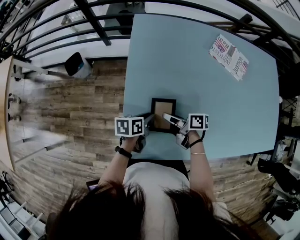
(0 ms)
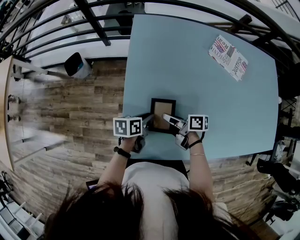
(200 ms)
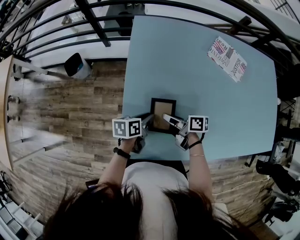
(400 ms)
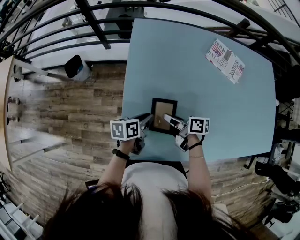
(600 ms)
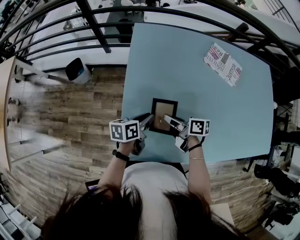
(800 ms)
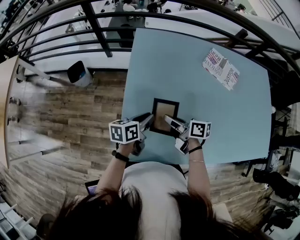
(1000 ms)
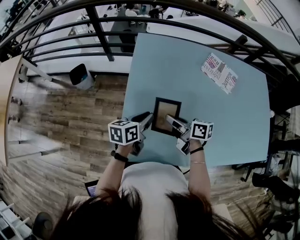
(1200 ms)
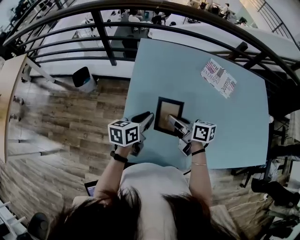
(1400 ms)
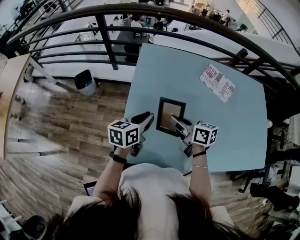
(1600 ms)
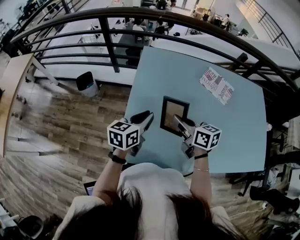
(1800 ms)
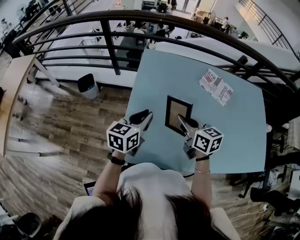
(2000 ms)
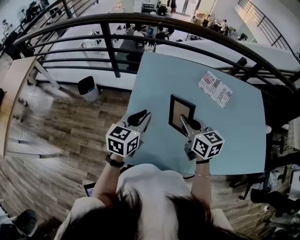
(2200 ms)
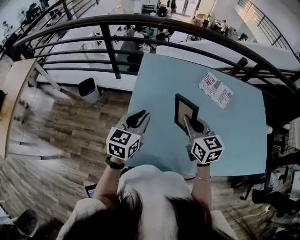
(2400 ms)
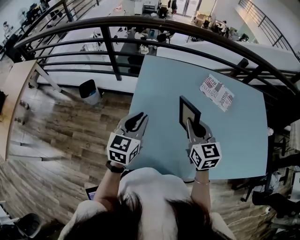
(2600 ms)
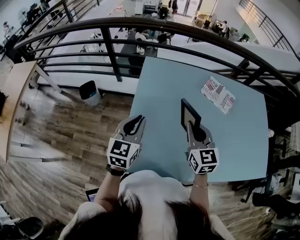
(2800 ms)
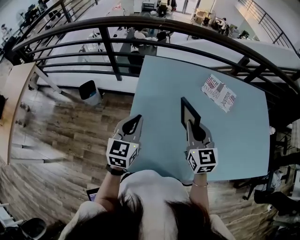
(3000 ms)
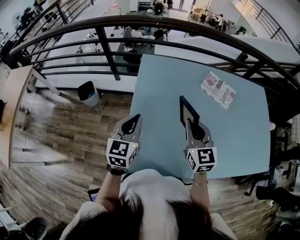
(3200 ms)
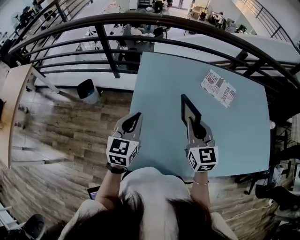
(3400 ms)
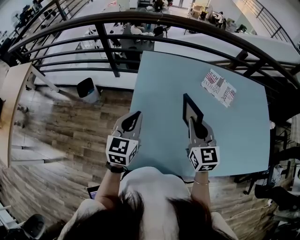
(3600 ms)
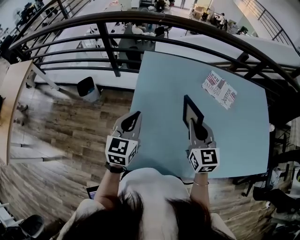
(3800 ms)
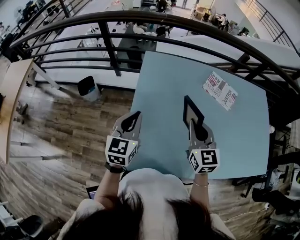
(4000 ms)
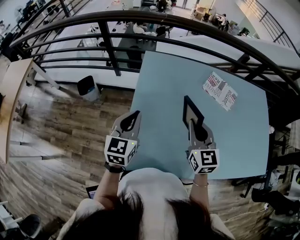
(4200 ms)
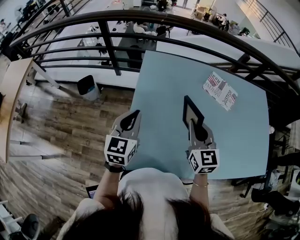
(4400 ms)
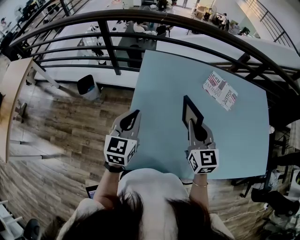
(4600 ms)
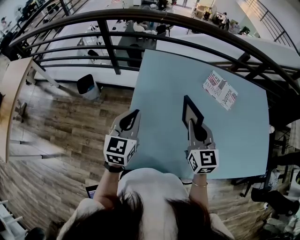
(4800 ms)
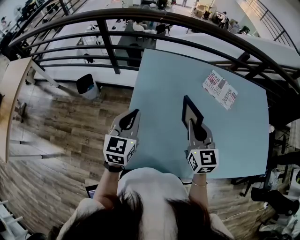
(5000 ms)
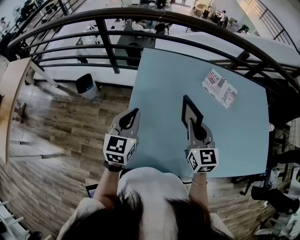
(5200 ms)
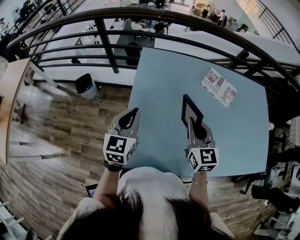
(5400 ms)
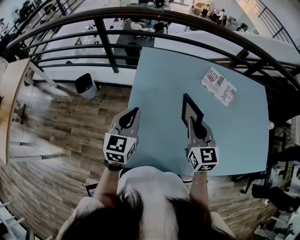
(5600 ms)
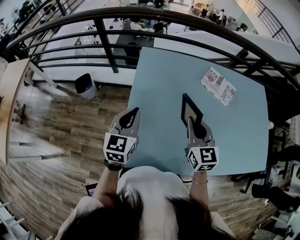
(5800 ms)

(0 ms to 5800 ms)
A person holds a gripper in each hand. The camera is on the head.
0 ms - 1400 ms: The grippers both shift upward by about 15 cm. The left gripper changes its angle by some 30 degrees; the right gripper changes its angle by some 30 degrees.
1400 ms - 2800 ms: The right gripper moves upward and to the right, about 15 cm, and rolls counterclockwise, seen from behind, by approximately 50 degrees. The left gripper heads upward, covering about 10 cm, and turns by about 40 degrees.
2800 ms - 4400 ms: The grippers stay close to where they were, moving slightly.
4400 ms - 5800 ms: Neither gripper changes place.

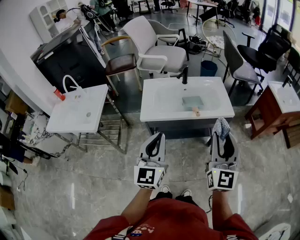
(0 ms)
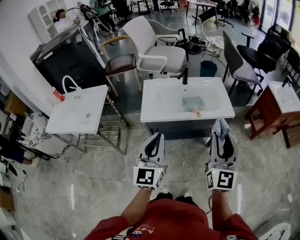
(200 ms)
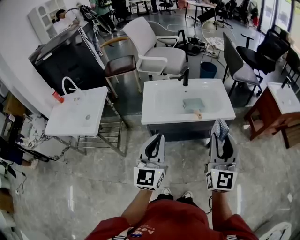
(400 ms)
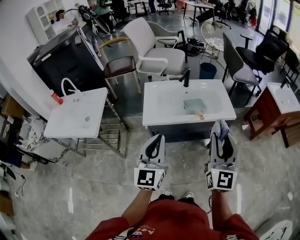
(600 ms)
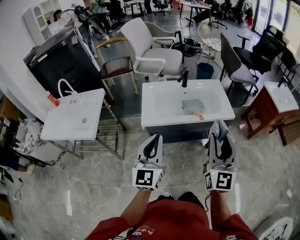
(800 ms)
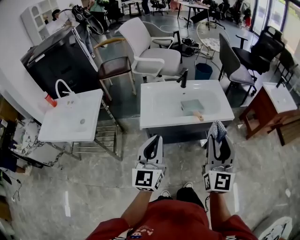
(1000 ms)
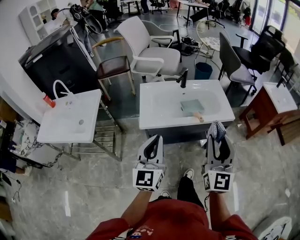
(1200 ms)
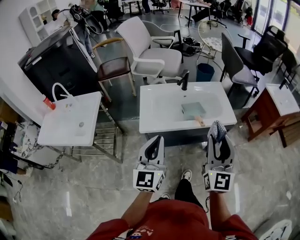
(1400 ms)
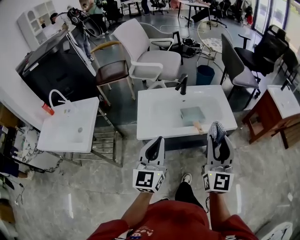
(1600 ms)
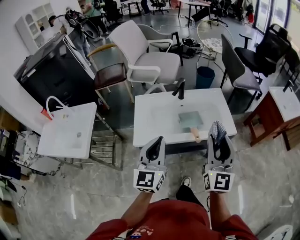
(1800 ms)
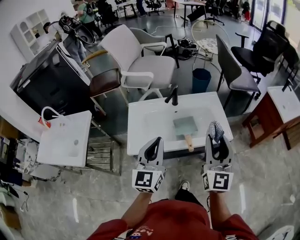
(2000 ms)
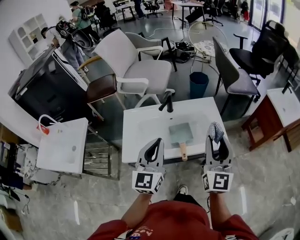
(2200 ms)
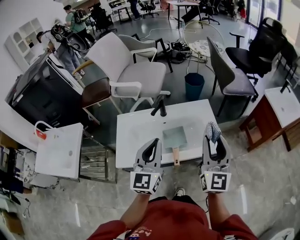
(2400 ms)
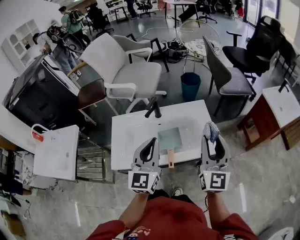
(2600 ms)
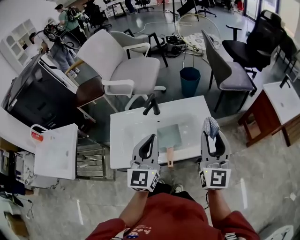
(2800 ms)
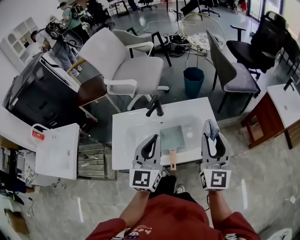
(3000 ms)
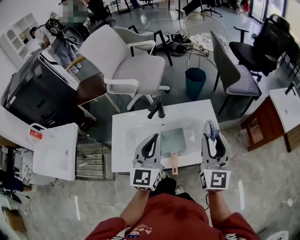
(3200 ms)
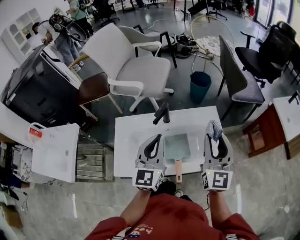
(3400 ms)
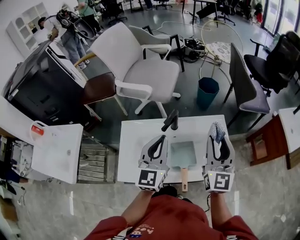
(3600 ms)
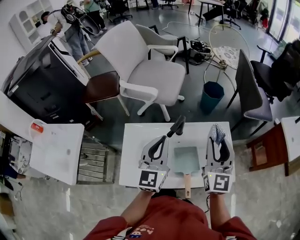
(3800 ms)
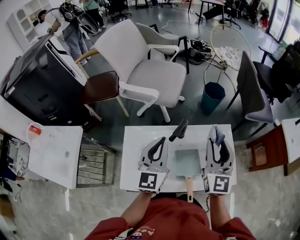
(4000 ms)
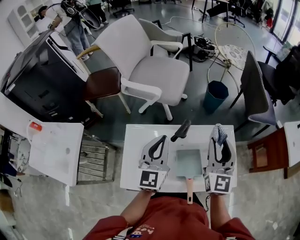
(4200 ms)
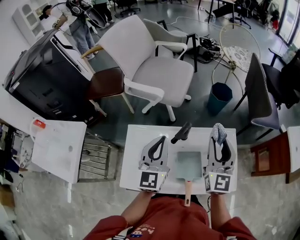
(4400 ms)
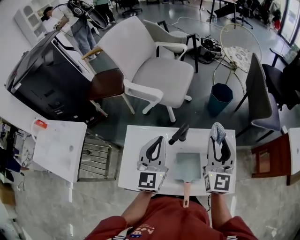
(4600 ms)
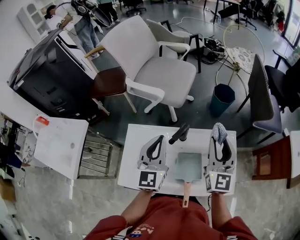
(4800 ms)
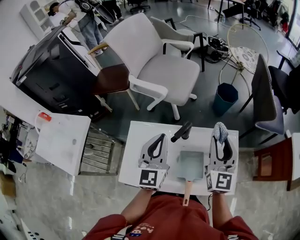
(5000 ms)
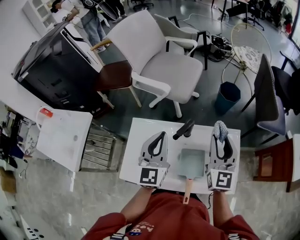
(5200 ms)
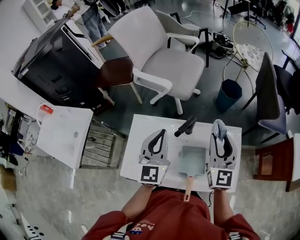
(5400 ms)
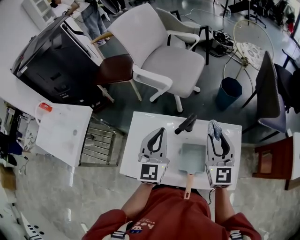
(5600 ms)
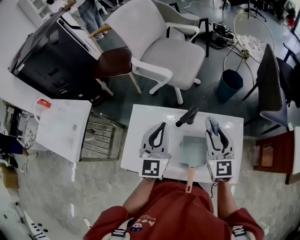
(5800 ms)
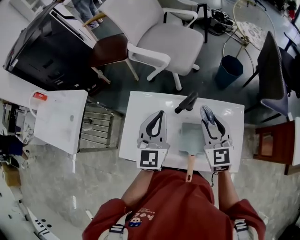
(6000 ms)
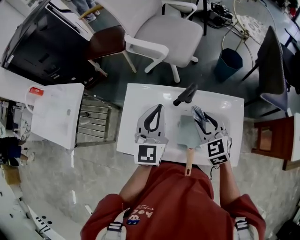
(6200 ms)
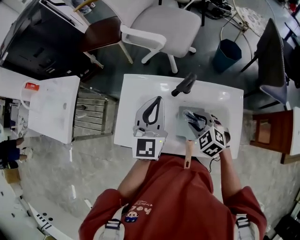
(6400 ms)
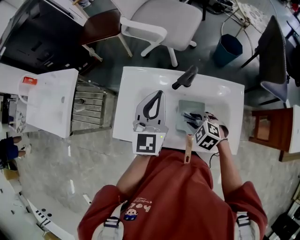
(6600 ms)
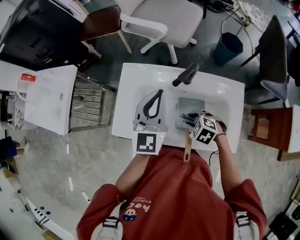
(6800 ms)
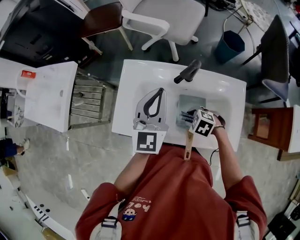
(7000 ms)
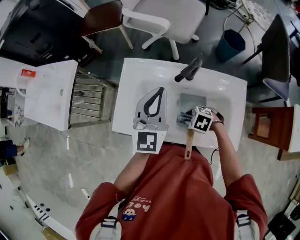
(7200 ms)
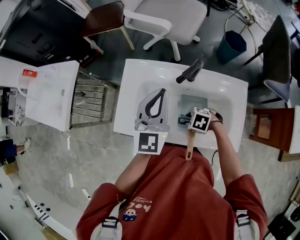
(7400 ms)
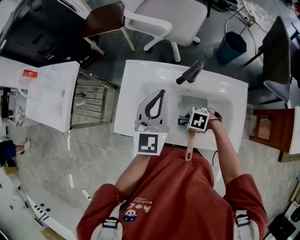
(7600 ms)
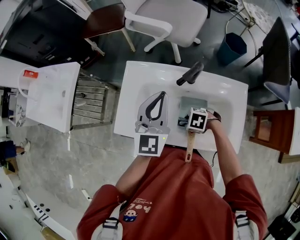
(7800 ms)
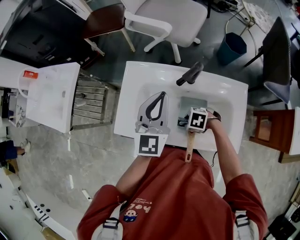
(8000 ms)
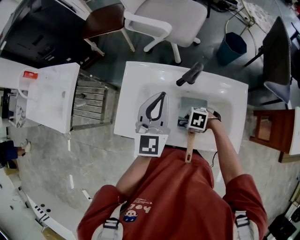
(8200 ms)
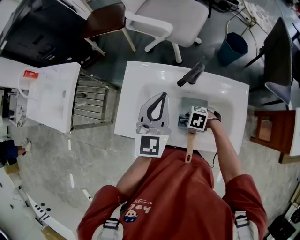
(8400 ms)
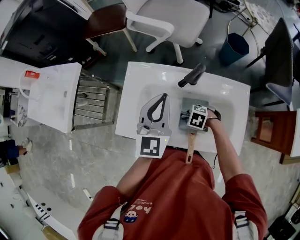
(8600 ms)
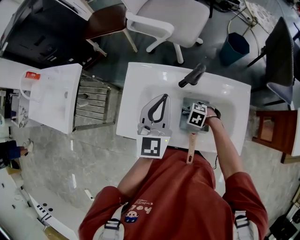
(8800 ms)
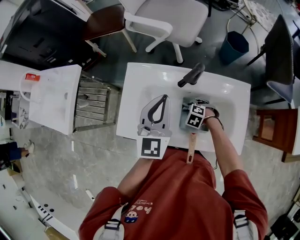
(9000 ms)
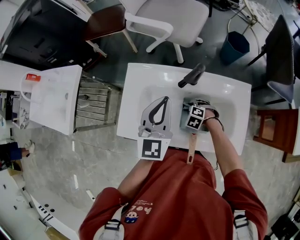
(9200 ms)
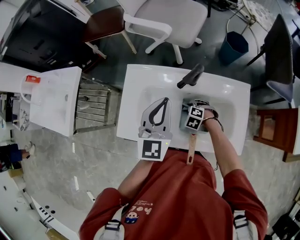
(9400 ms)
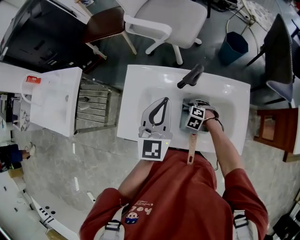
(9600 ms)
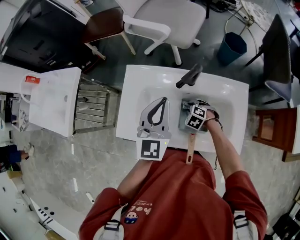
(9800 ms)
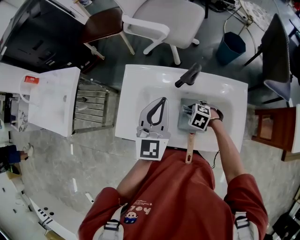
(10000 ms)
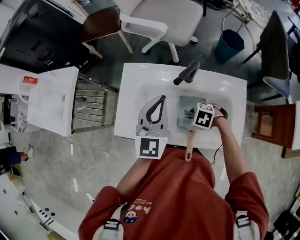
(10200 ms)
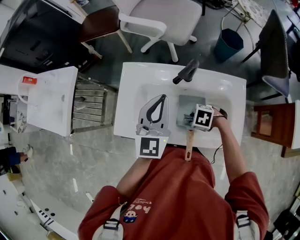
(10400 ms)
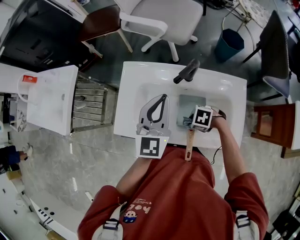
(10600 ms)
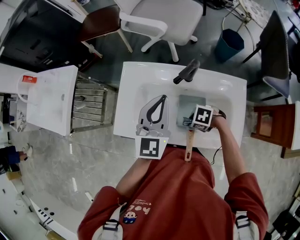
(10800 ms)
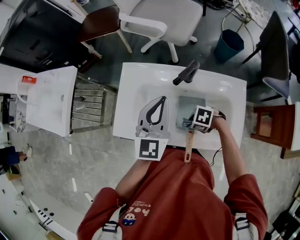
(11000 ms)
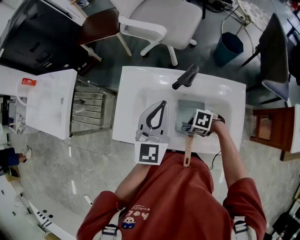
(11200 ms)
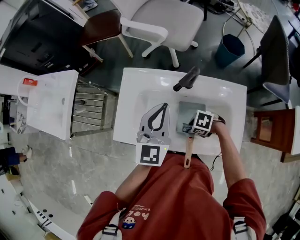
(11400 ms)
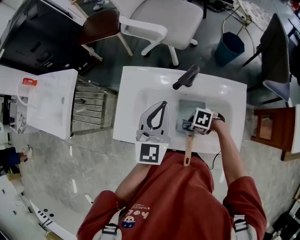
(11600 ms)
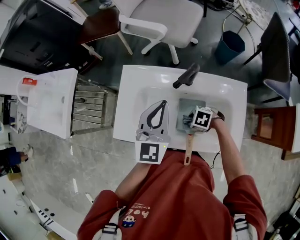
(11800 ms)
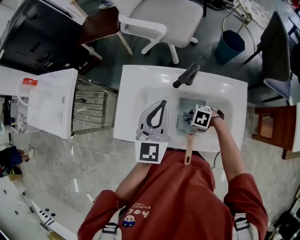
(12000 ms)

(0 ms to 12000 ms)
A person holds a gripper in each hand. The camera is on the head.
0 ms - 1600 ms: The left gripper travels forward by approximately 10 cm, while the right gripper heads forward and to the left, covering some 10 cm.
1600 ms - 3000 ms: Both grippers move forward and to the right, roughly 30 cm.
3000 ms - 4400 ms: The two grippers go about 20 cm forward and to the left.
4400 ms - 6000 ms: The right gripper travels downward by about 10 cm, and turns by about 30 degrees.
6000 ms - 7600 ms: The right gripper shifts roughly 25 cm downward, and angles its fingers downward, by some 50 degrees.
7600 ms - 9000 ms: The right gripper shifts by about 10 cm, and swivels about 20 degrees.
9000 ms - 10400 ms: The right gripper heads upward, covering approximately 10 cm, and turns by roughly 20 degrees.
10400 ms - 12000 ms: The right gripper shifts by approximately 5 cm.

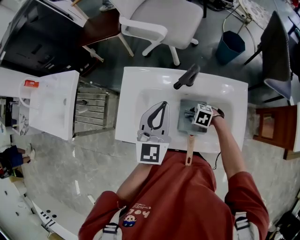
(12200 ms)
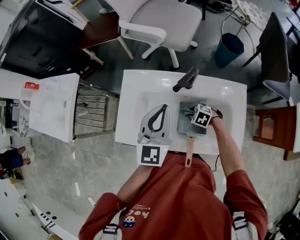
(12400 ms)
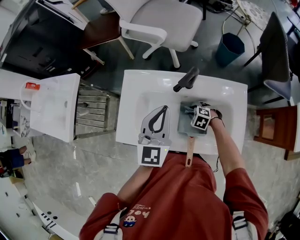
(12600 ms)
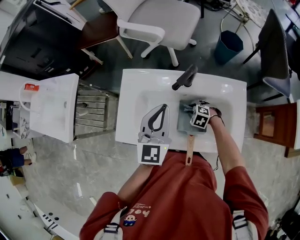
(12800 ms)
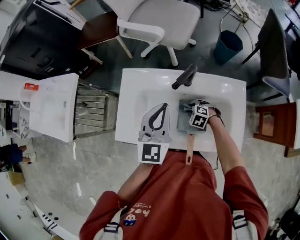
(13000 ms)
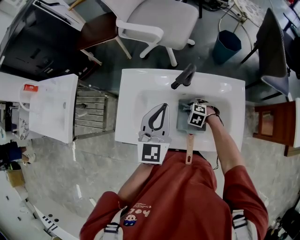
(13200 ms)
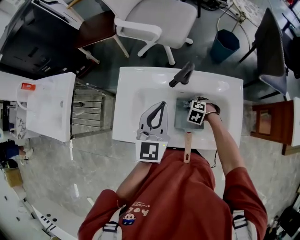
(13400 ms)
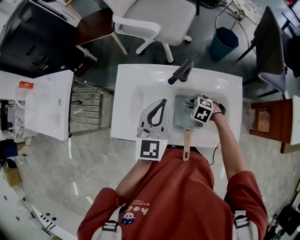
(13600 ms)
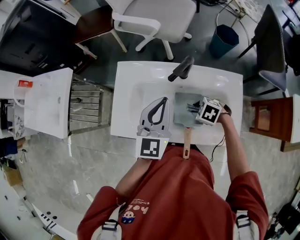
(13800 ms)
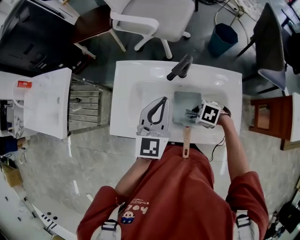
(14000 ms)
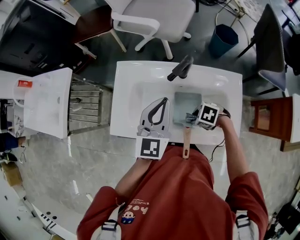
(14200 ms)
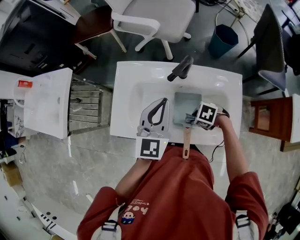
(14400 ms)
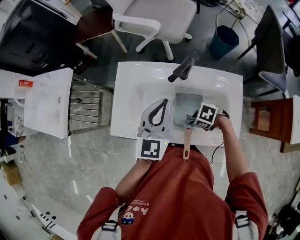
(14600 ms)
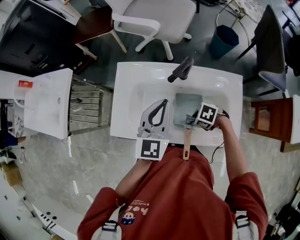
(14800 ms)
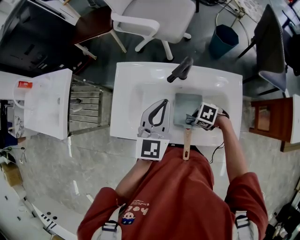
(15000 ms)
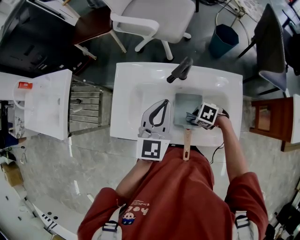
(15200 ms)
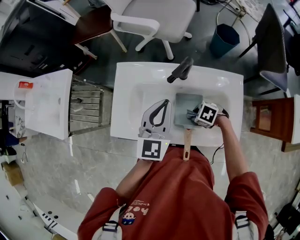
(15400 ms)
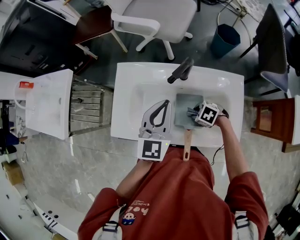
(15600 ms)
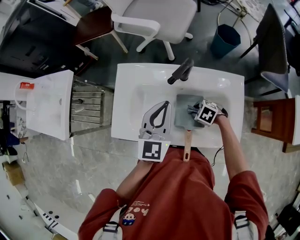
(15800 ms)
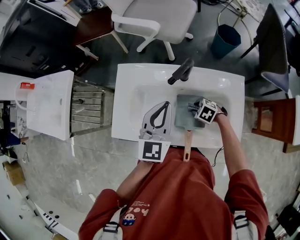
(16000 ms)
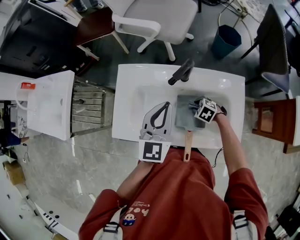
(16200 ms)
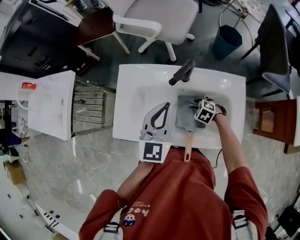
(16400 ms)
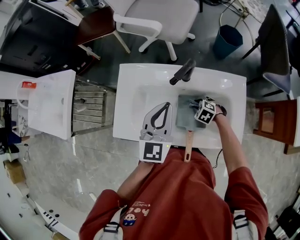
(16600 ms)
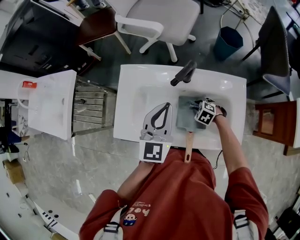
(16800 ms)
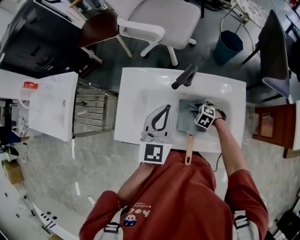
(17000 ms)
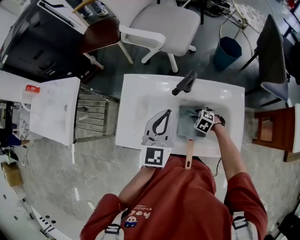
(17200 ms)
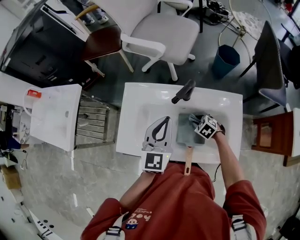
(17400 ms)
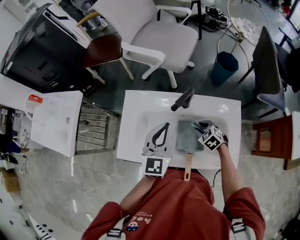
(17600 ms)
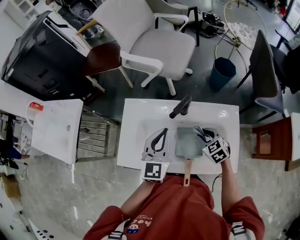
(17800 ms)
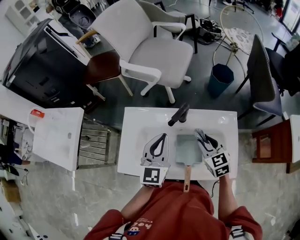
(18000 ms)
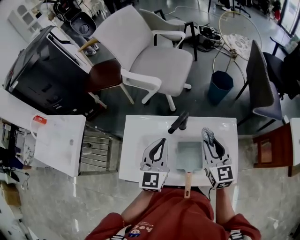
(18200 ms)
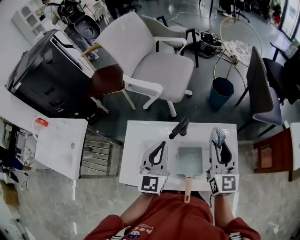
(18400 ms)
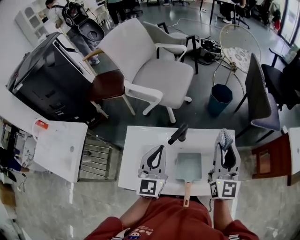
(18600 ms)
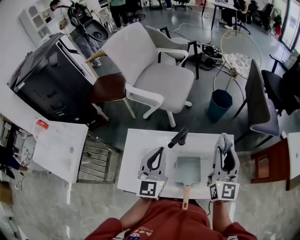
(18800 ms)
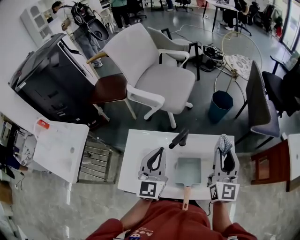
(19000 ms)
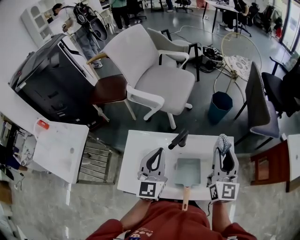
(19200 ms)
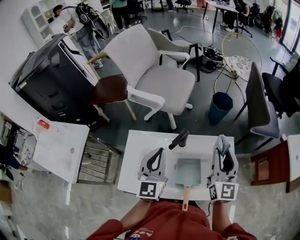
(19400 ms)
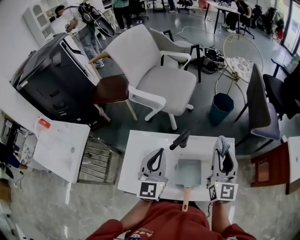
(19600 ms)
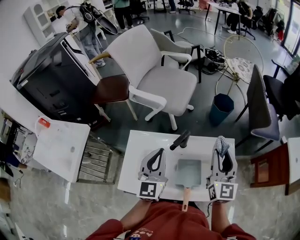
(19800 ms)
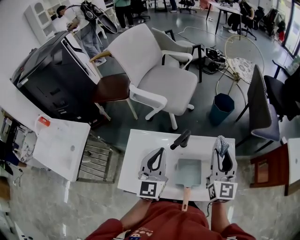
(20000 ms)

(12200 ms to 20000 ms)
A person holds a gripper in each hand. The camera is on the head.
12200 ms - 13800 ms: The right gripper moves upward, roughly 5 cm.
13800 ms - 15400 ms: The grippers stay close to where they were, moving slightly.
15400 ms - 16800 ms: The right gripper moves about 10 cm.
16800 ms - 18400 ms: The right gripper travels upward by roughly 40 cm, and points its fingers some 70 degrees further upward; the left gripper moves upward, approximately 5 cm.
18400 ms - 20000 ms: The grippers stay close to where they were, moving slightly.
